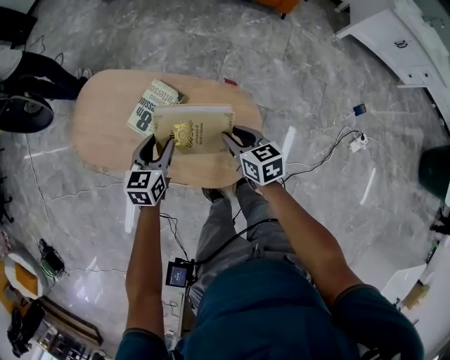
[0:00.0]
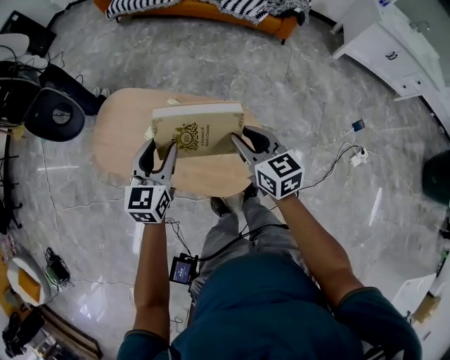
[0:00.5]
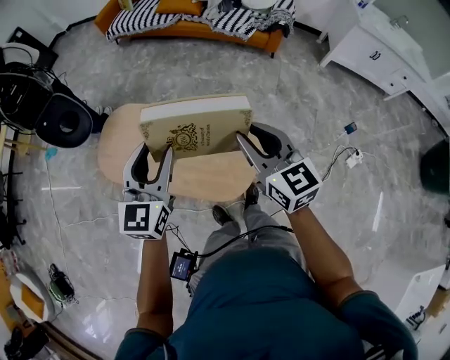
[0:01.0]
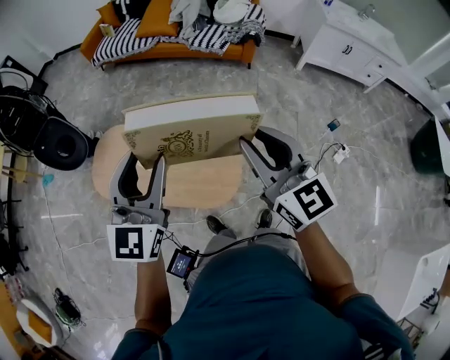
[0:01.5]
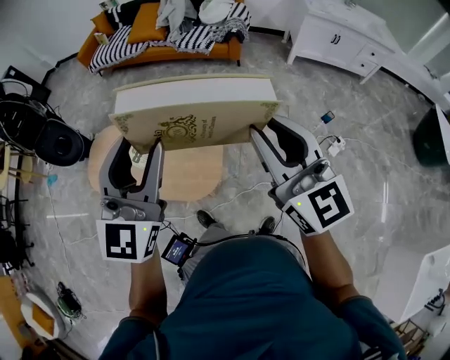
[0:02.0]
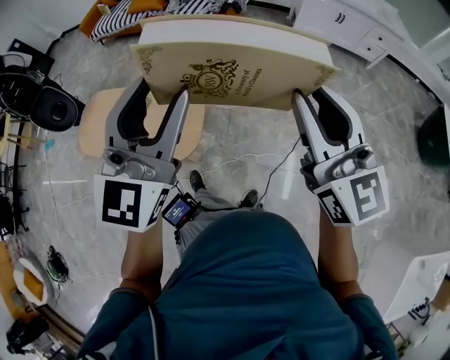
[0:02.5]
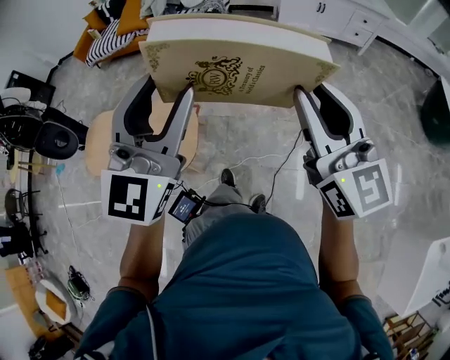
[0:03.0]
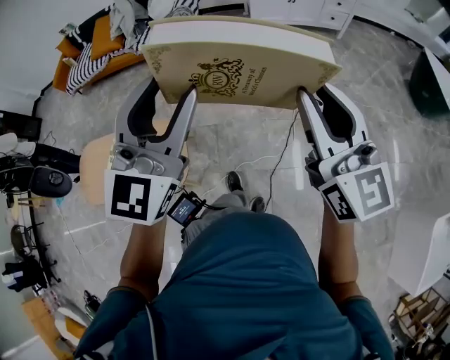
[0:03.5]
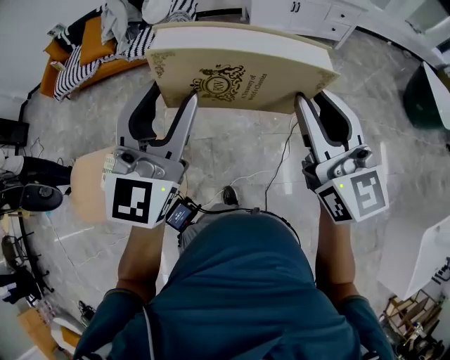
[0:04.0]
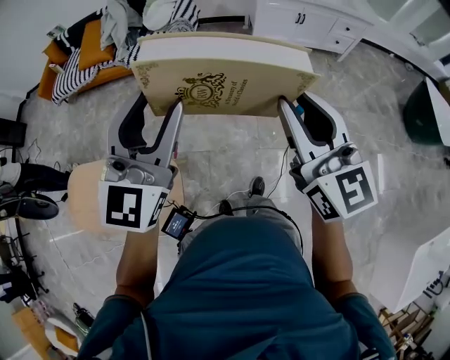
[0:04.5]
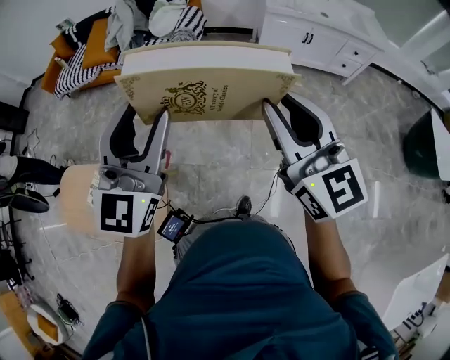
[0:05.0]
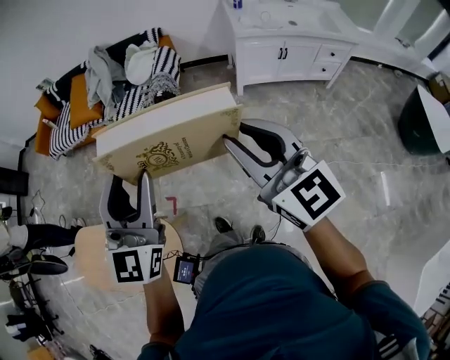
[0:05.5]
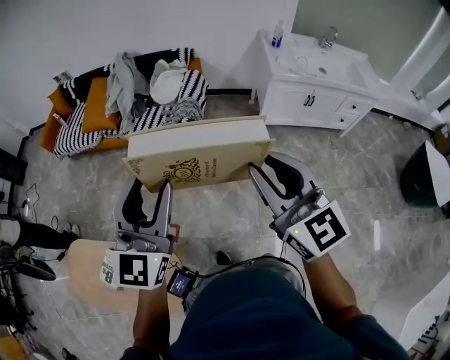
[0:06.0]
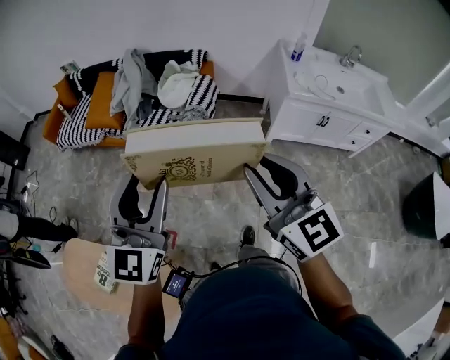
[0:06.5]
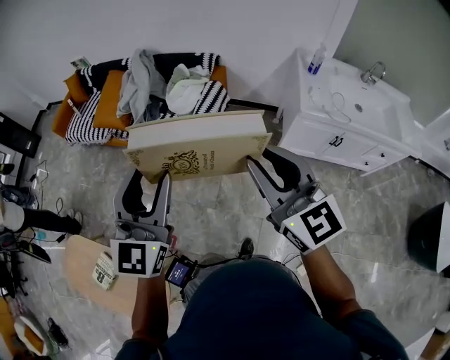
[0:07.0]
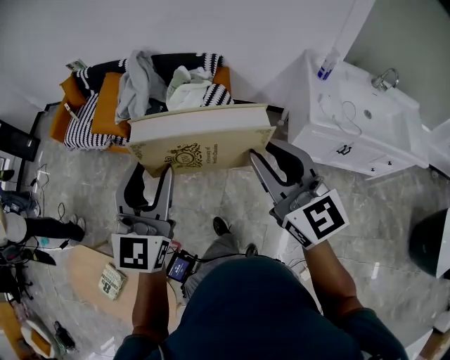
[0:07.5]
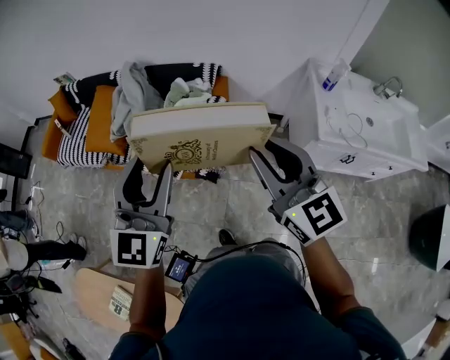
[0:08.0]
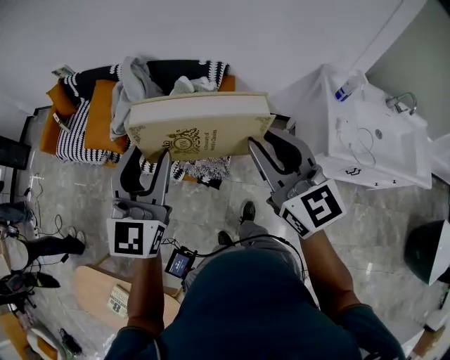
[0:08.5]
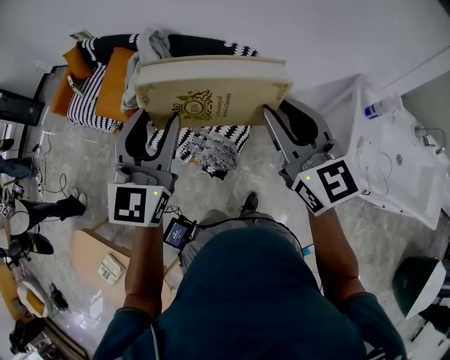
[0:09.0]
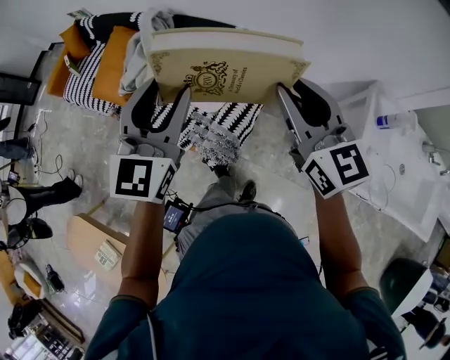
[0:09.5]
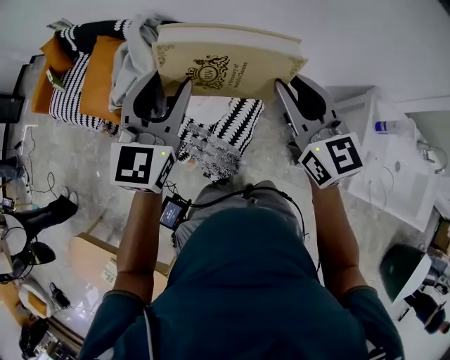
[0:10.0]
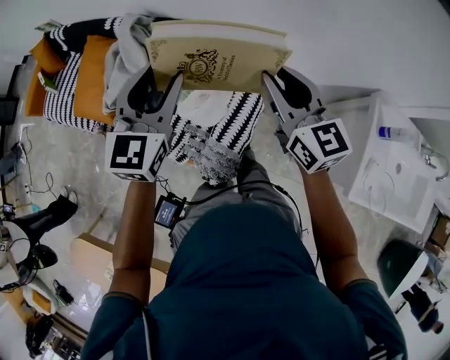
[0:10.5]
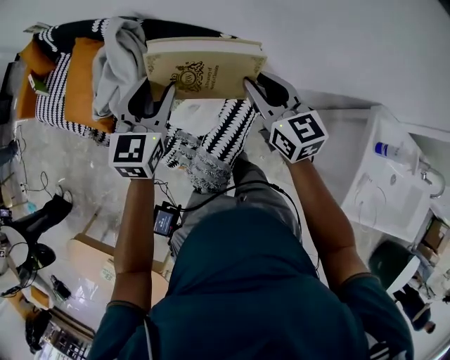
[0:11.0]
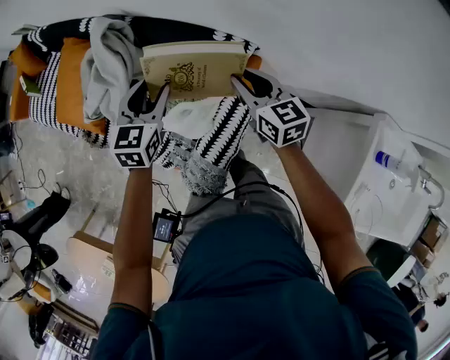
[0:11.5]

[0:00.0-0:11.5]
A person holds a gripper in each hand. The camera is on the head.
0:00.0 to 0:02.0: The right gripper travels upward, backward and to the right by roughly 60 cm, and angles its fingers upward, by about 40 degrees; the left gripper is displaced upward, to the right and backward by some 60 cm, and tilts its fingers approximately 40 degrees upward.
0:02.0 to 0:04.0: The left gripper heads to the right and forward, covering some 35 cm, and changes its angle by about 20 degrees; the right gripper moves to the right, some 35 cm, and changes its angle by roughly 20 degrees.
0:04.0 to 0:06.0: Both grippers travel together forward, about 40 cm.
0:06.0 to 0:07.5: Both grippers move forward, approximately 35 cm.
0:07.5 to 0:09.5: Both grippers are carried forward, some 50 cm.
0:09.5 to 0:11.5: Both grippers travel together forward and downward, about 40 cm. The right gripper turns by about 20 degrees. Meanwhile the left gripper turns by roughly 30 degrees.

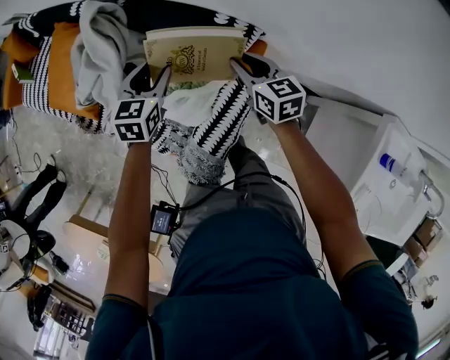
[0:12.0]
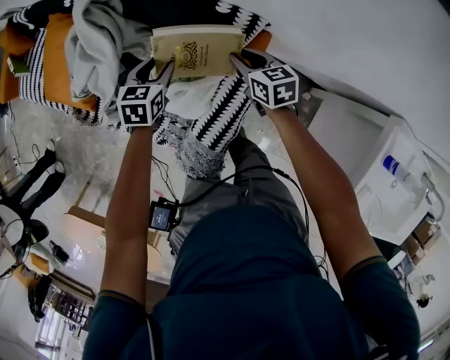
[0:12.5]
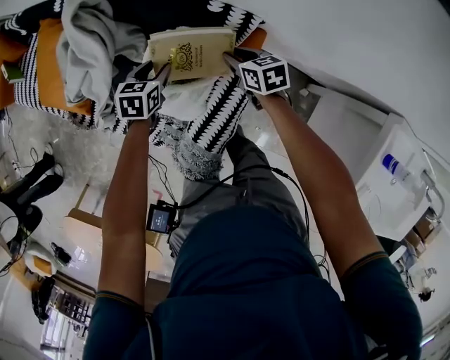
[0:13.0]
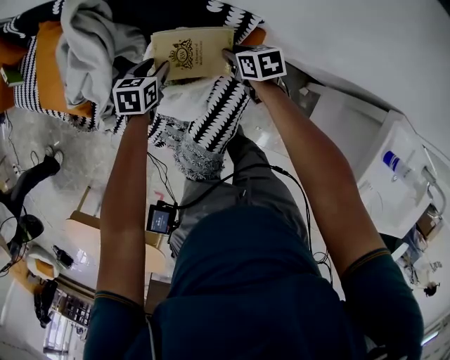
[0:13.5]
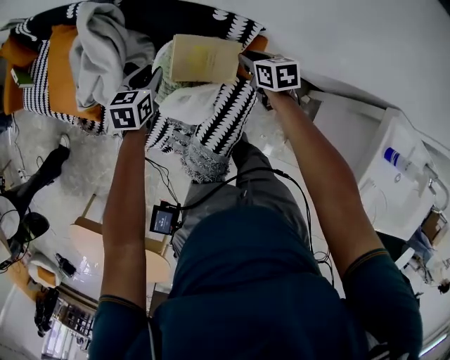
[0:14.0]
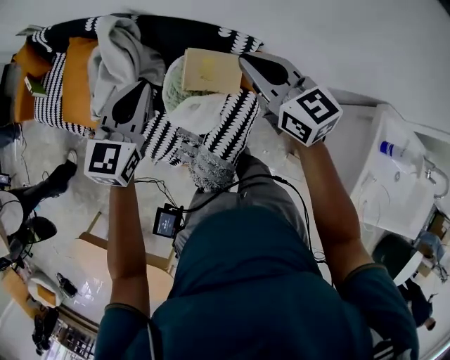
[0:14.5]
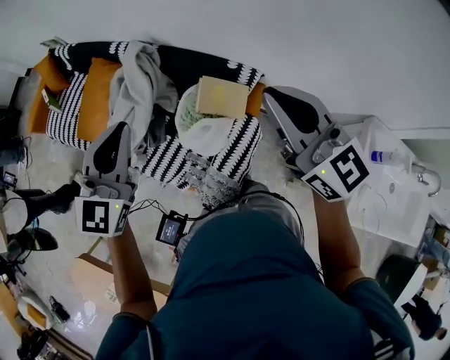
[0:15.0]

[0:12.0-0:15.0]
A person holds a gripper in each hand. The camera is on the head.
0:12.0 to 0:13.5: The grippers both shift downward by some 15 cm. The right gripper changes its angle by some 20 degrees.
0:13.5 to 0:15.0: The two grippers go approximately 50 cm upward. The right gripper points its fingers about 50 degrees further upward, and closes; the left gripper tips its fingers upward by some 50 degrees, and closes its fingers.

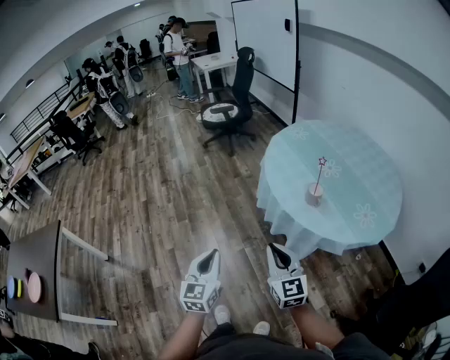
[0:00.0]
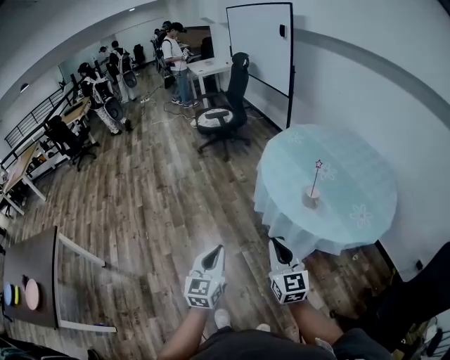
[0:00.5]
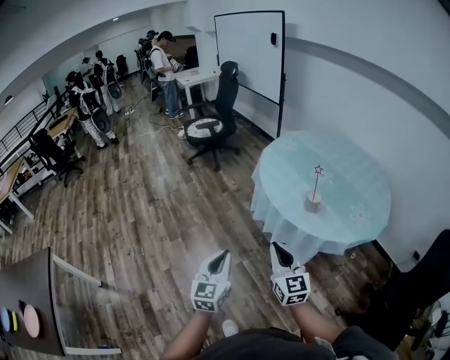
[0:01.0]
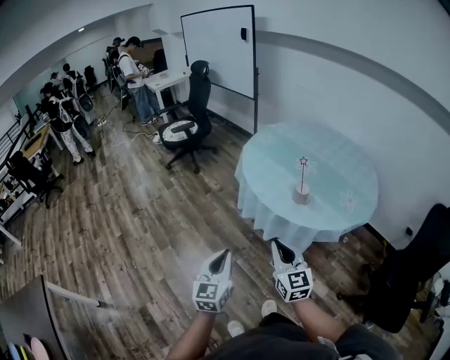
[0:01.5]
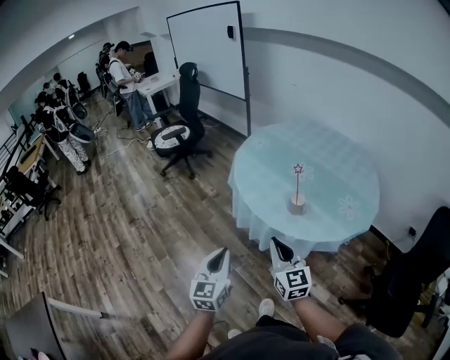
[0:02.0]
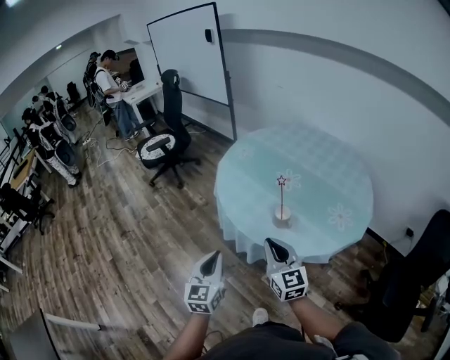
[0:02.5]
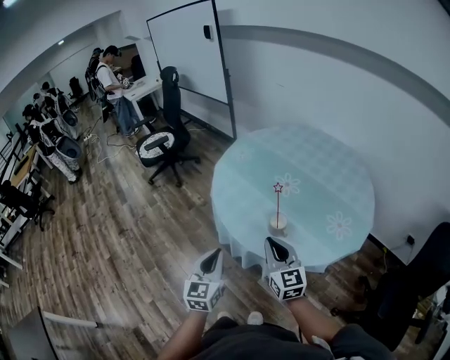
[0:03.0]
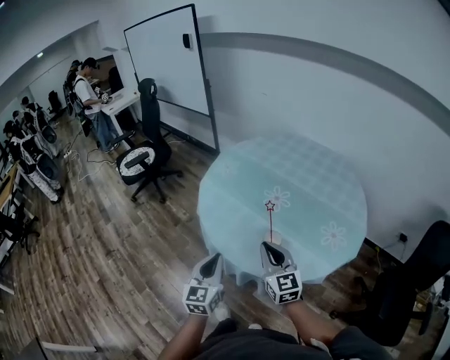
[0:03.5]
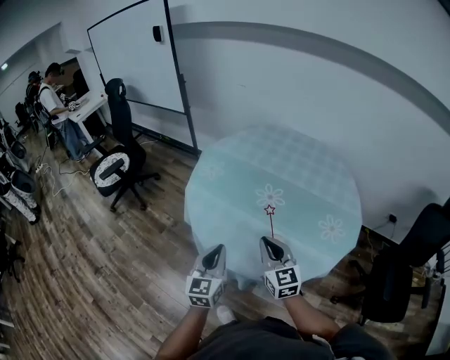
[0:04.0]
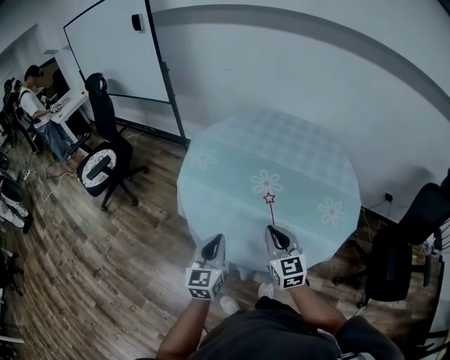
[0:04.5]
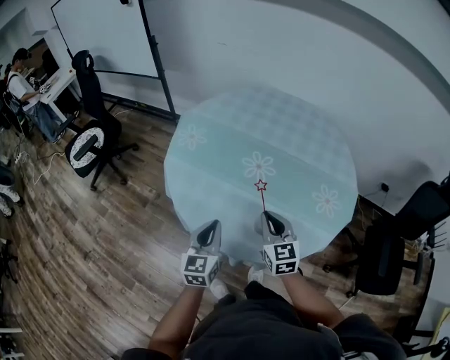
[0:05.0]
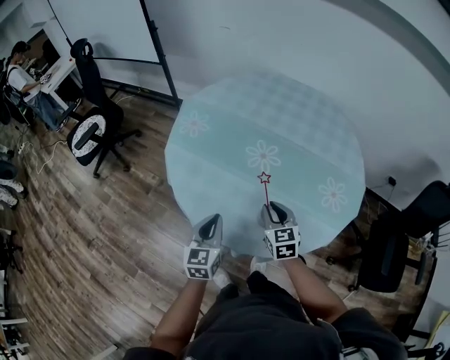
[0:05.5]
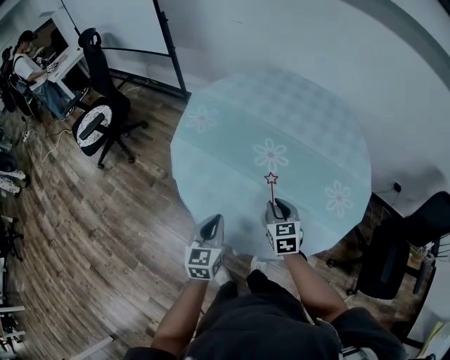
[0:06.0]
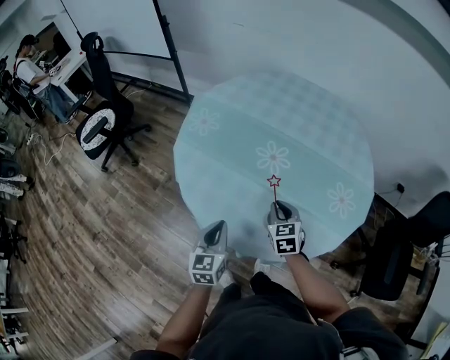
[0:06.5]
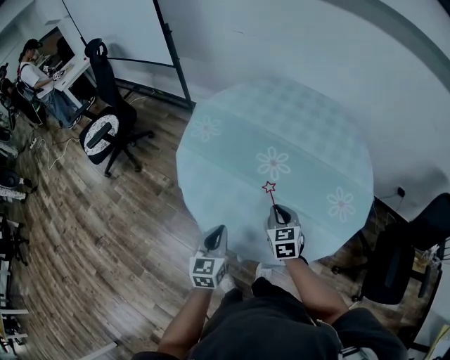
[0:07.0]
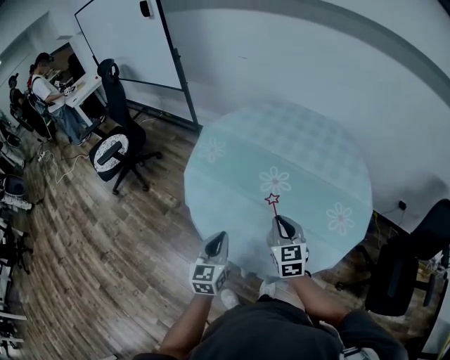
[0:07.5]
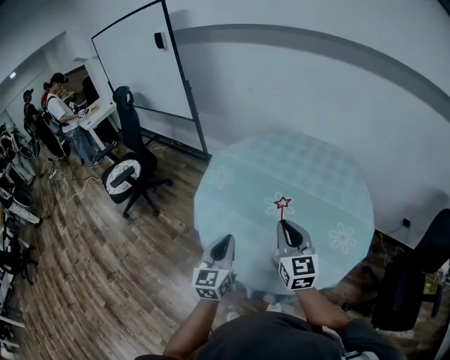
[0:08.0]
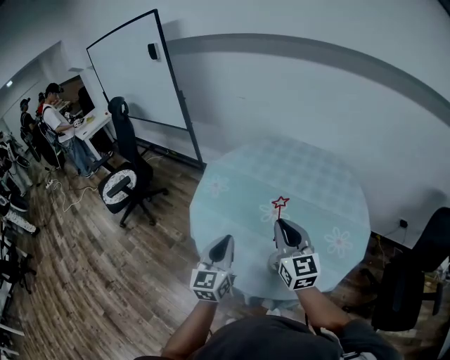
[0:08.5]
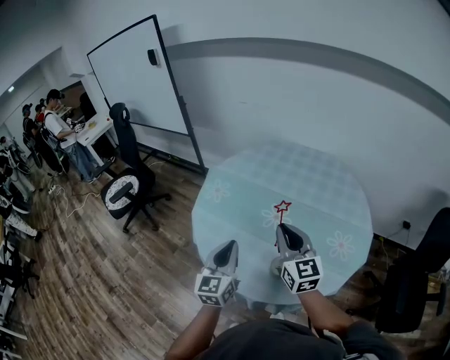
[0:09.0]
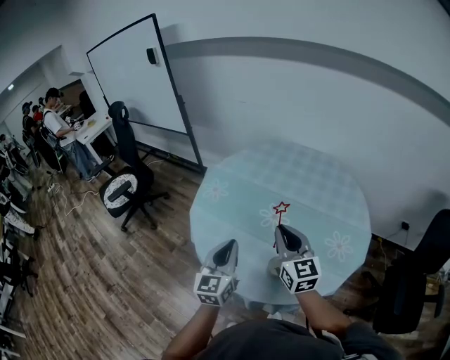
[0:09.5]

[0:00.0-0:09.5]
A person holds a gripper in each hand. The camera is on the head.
0:00.0 to 0:02.0: Both grippers travel together forward, about 15 cm. The left gripper rotates about 20 degrees.
0:02.0 to 0:04.0: Both grippers move forward, roughly 30 cm.
0:04.0 to 0:05.5: The right gripper travels downward, forward and to the right by roughly 15 cm, and changes its angle by about 20 degrees, while the left gripper is displaced downward and forward by about 10 cm.
0:05.5 to 0:07.5: The right gripper shifts roughly 10 cm upward.
0:07.5 to 0:09.5: Both grippers travel together upward, some 10 cm. The right gripper swivels approximately 20 degrees.

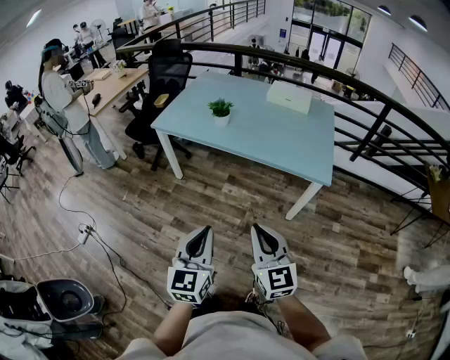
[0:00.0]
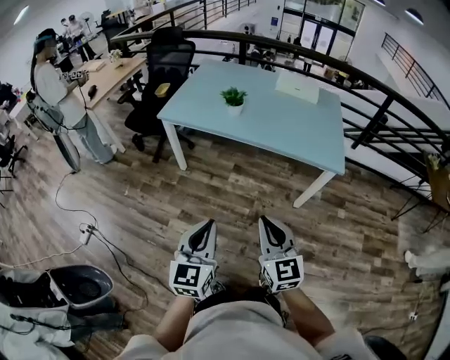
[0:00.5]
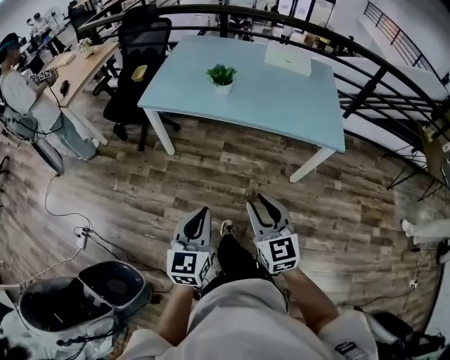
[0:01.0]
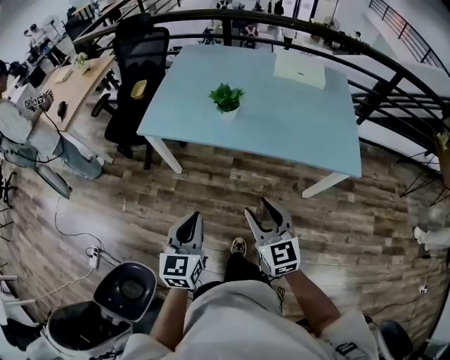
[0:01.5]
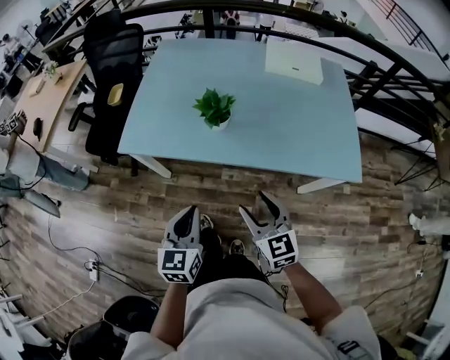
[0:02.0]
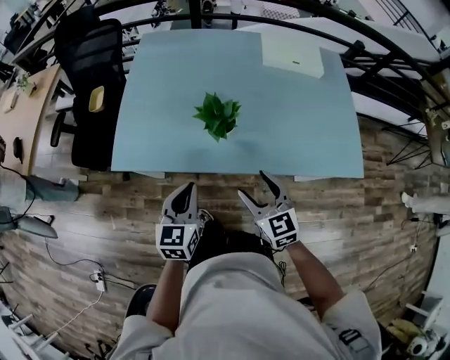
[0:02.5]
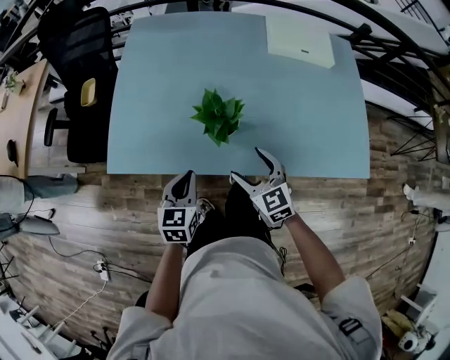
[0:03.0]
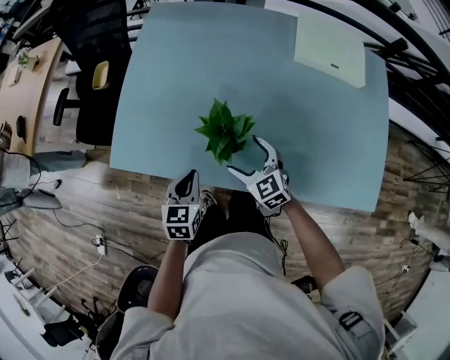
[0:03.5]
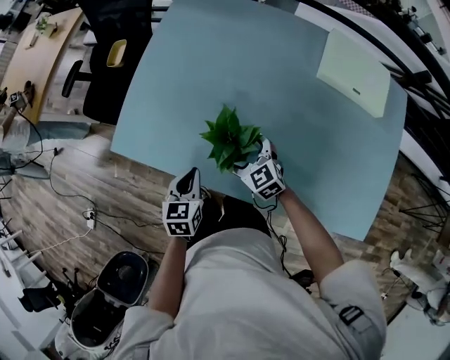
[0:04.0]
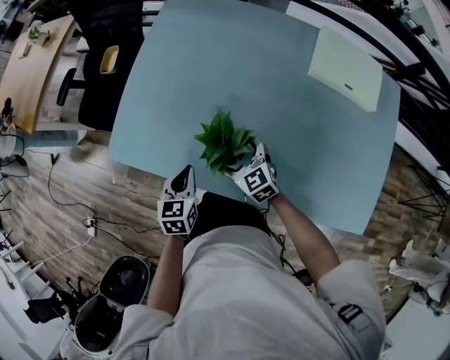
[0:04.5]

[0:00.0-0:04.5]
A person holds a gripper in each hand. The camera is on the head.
0:00.0 to 0:02.0: Both grippers are carried forward and to the left, some 40 cm. The right gripper opens.
0:02.0 to 0:04.5: The right gripper moves some 40 cm, rotates approximately 30 degrees, and opens up. Meanwhile the left gripper moves some 30 cm, and rotates roughly 20 degrees.
